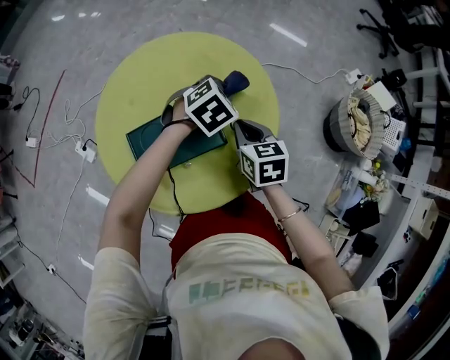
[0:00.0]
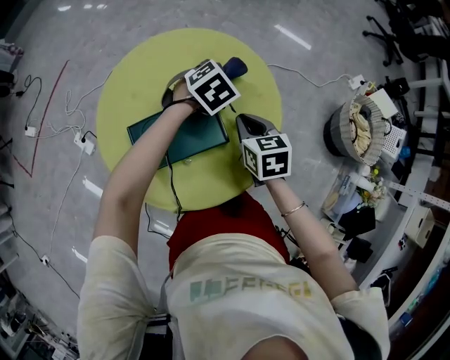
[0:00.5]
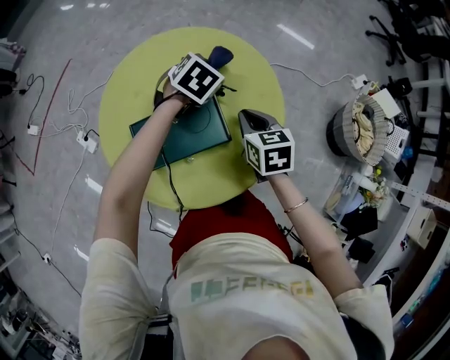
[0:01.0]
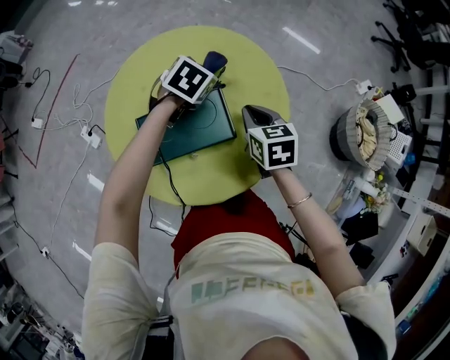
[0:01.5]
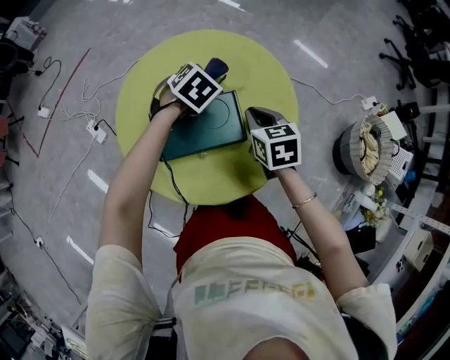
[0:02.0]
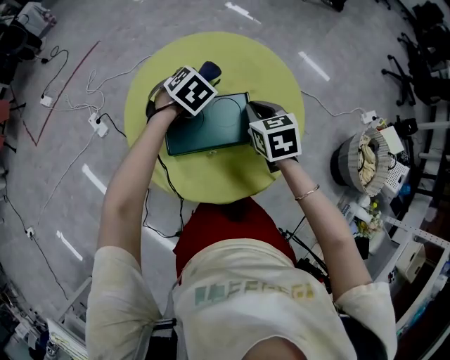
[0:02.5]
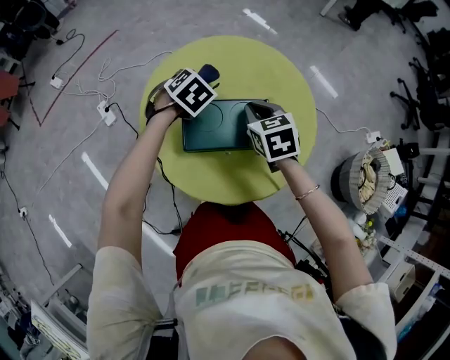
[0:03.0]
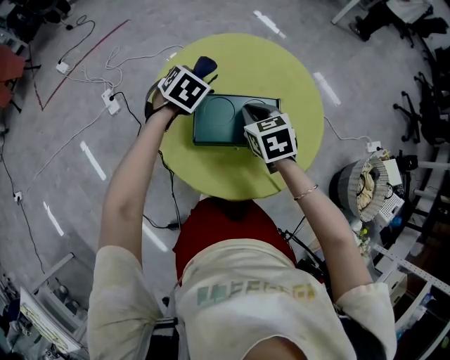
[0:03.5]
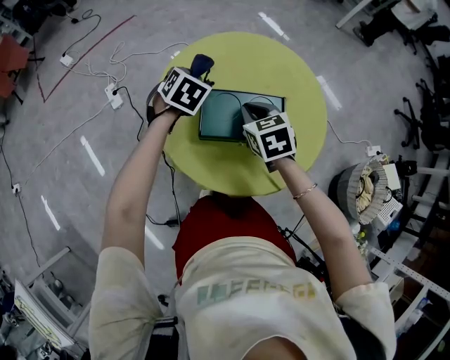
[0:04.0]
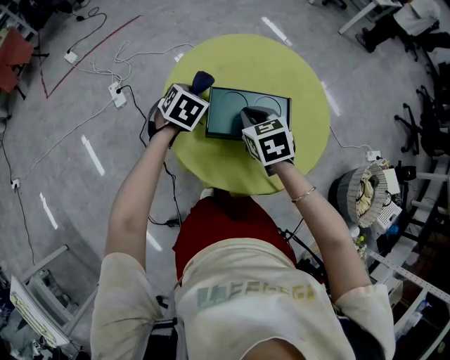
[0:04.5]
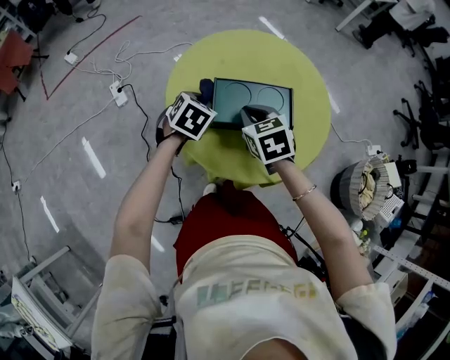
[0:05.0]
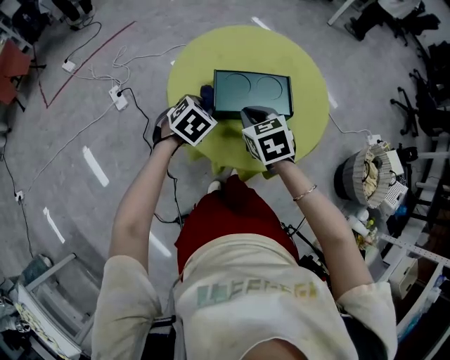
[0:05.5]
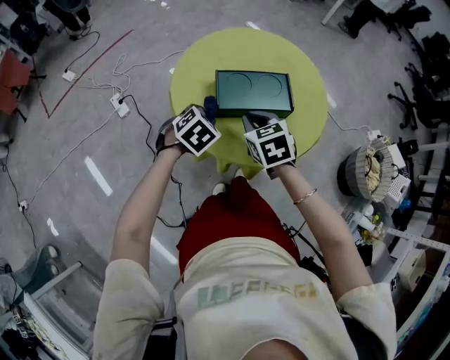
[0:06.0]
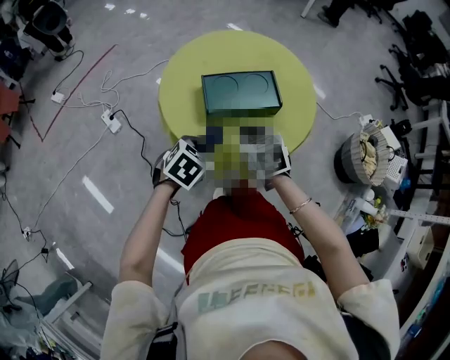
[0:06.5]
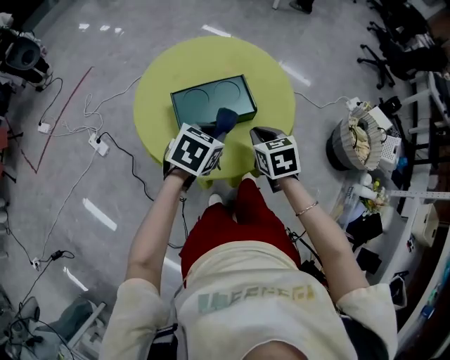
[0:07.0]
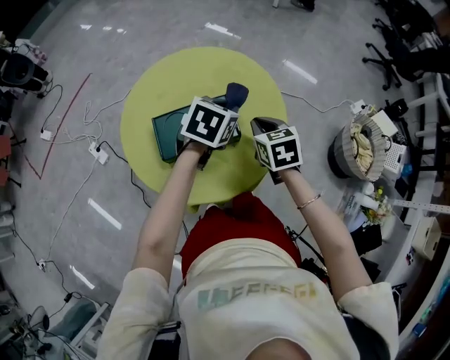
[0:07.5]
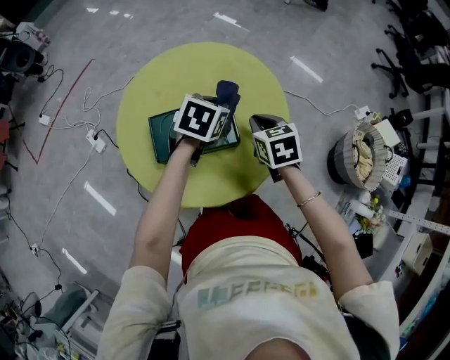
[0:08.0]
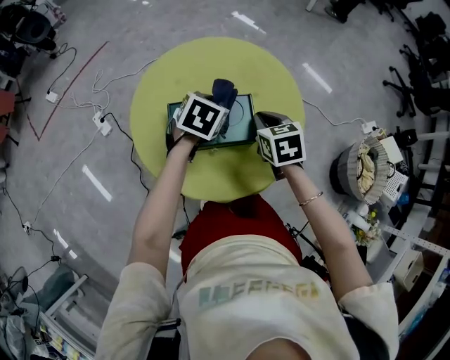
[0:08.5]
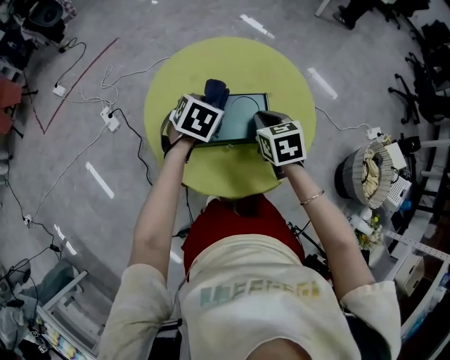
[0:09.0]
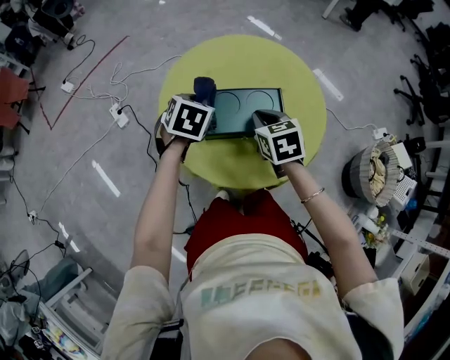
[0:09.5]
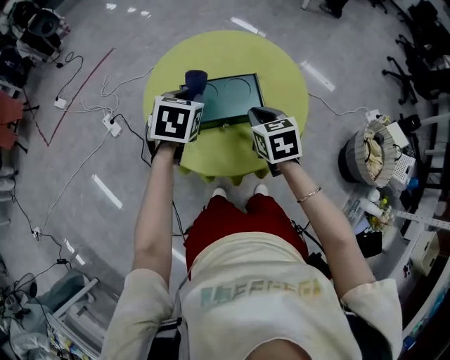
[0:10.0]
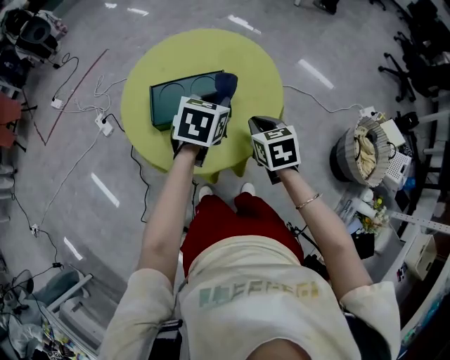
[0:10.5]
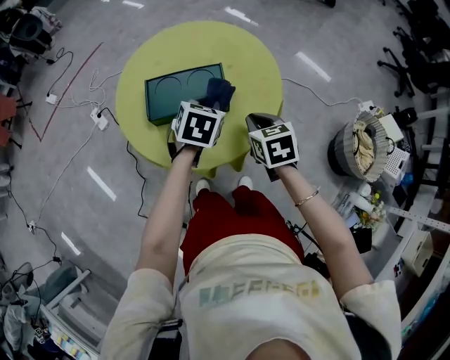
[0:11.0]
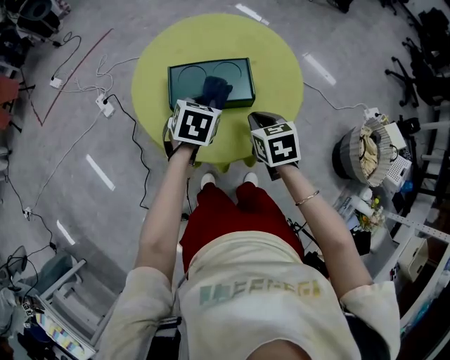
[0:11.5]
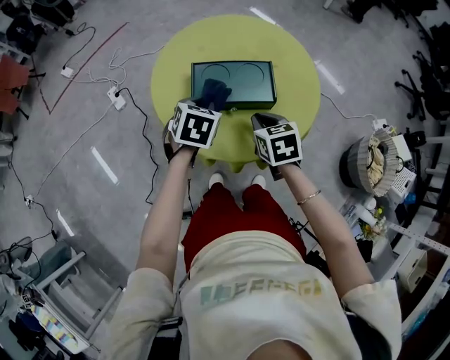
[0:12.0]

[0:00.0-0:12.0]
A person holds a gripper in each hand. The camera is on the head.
0:00.0 to 0:02.0: The left gripper is displaced to the left by approximately 15 cm, and rotates approximately 20 degrees.
0:02.0 to 0:04.0: Both grippers move to the left, about 20 cm. The right gripper turns by approximately 30 degrees; the left gripper swivels roughly 30 degrees.
0:04.0 to 0:06.0: The left gripper moves backward, some 20 cm, and rotates about 20 degrees. The right gripper travels backward by some 15 cm.
0:06.0 to 0:08.0: The two grippers go roughly 30 cm forward and to the right. The left gripper rotates some 20 degrees.
0:08.0 to 0:10.0: The right gripper travels backward and to the left by about 15 cm. The left gripper heads to the left and backward, covering about 20 cm.
0:10.0 to 0:12.0: The left gripper heads downward and backward, covering about 10 cm, and moves approximately 20 cm to the right and comes back. Meanwhile the right gripper moves downward, some 5 cm, and goes to the right and returns, approximately 10 cm each way.

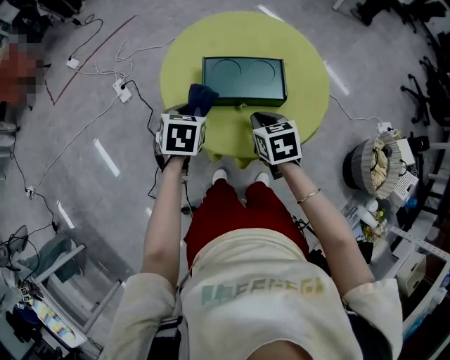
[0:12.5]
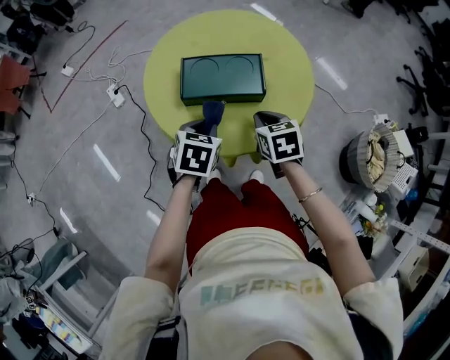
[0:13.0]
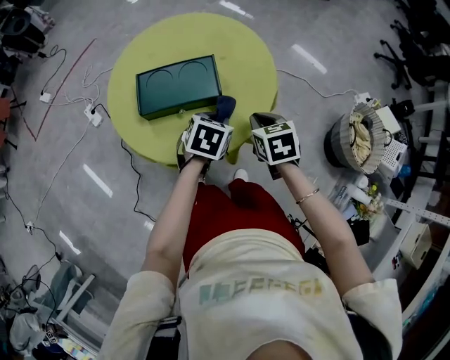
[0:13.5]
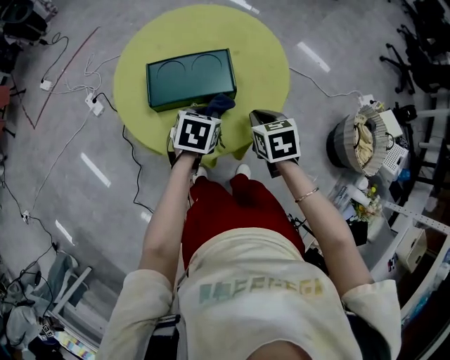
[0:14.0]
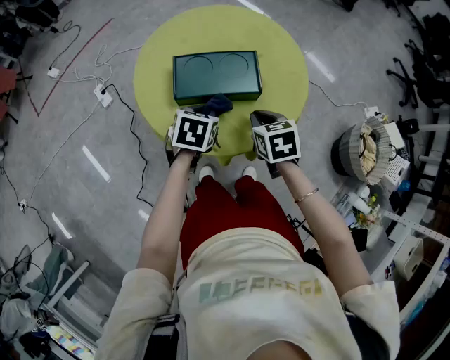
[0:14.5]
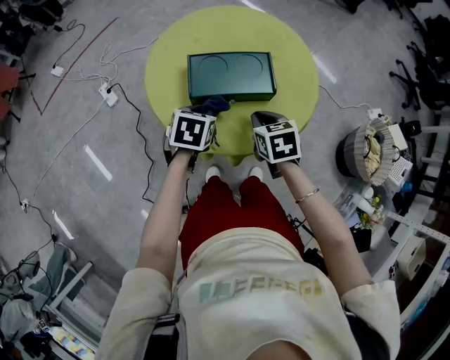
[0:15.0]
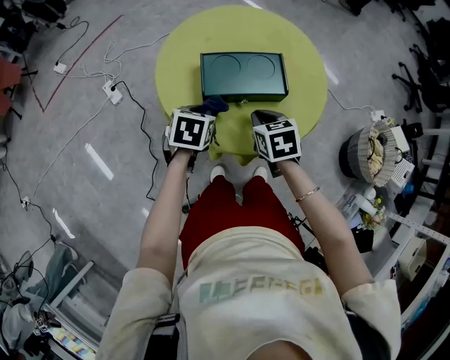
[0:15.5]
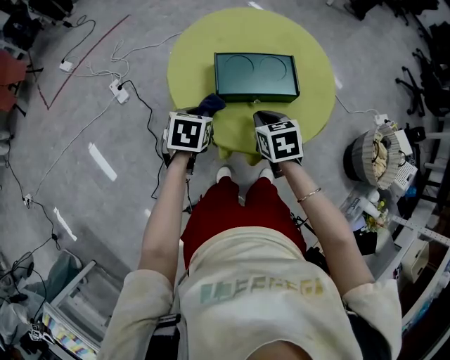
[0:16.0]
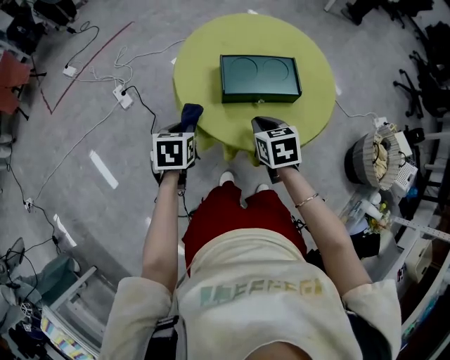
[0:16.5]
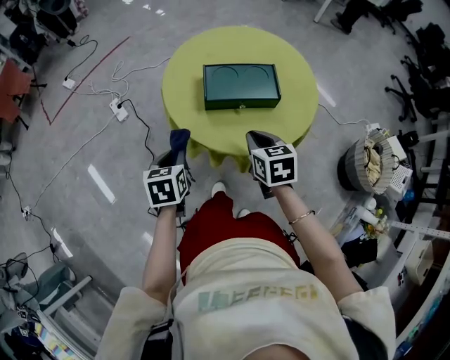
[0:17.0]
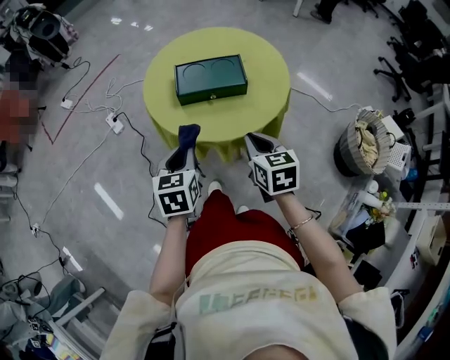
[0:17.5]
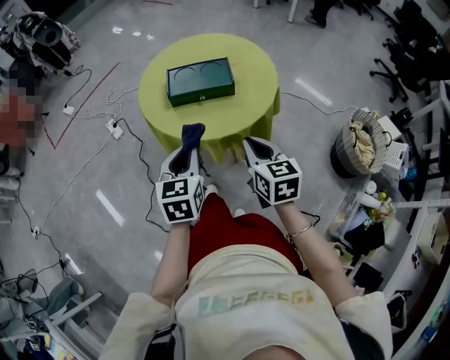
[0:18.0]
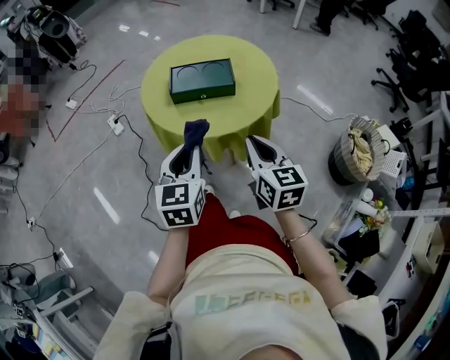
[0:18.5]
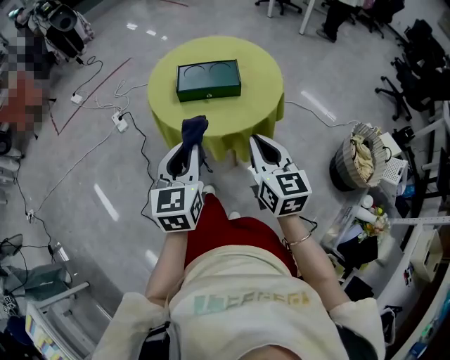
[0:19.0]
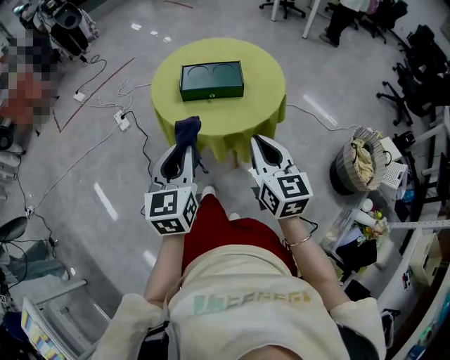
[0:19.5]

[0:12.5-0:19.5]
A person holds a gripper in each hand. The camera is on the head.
0:12.5 to 0:14.5: The left gripper heads to the right, covering about 10 cm, while the right gripper is displaced to the right by roughly 10 cm.
0:14.5 to 0:16.0: Both grippers move to the left, some 15 cm.
0:16.0 to 0:17.5: The right gripper shifts roughly 25 cm backward, to the right and upward, while the left gripper is displaced backward and upward by approximately 20 cm, and swivels some 20 degrees.
0:17.5 to 0:19.5: The grippers both shift upward and backward by roughly 15 cm. The right gripper swivels about 20 degrees. Meanwhile the left gripper swivels roughly 20 degrees.

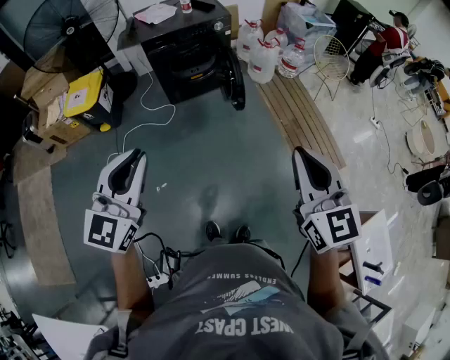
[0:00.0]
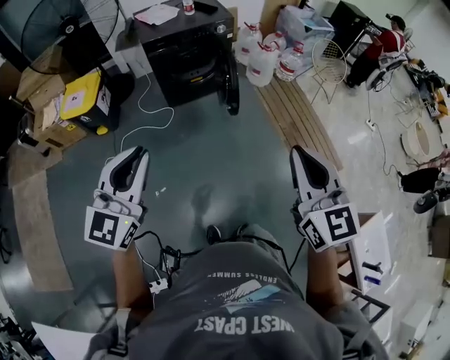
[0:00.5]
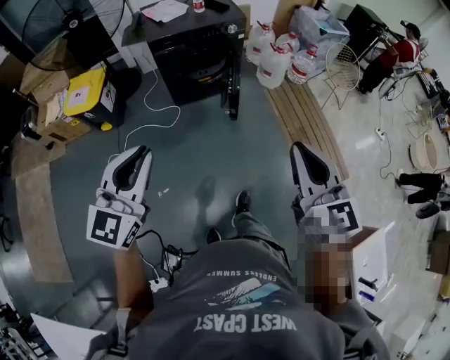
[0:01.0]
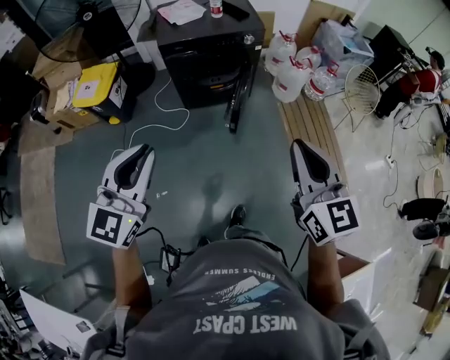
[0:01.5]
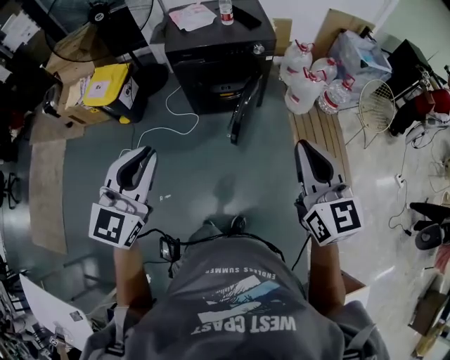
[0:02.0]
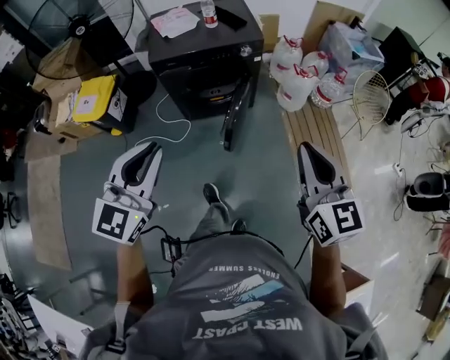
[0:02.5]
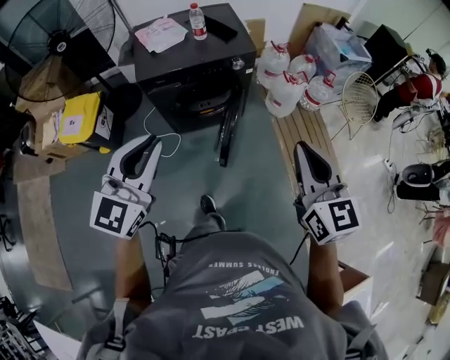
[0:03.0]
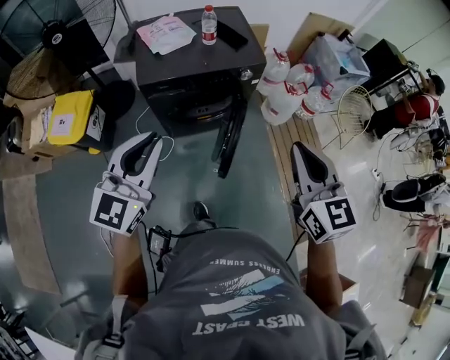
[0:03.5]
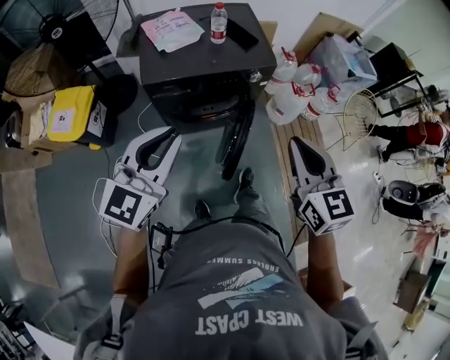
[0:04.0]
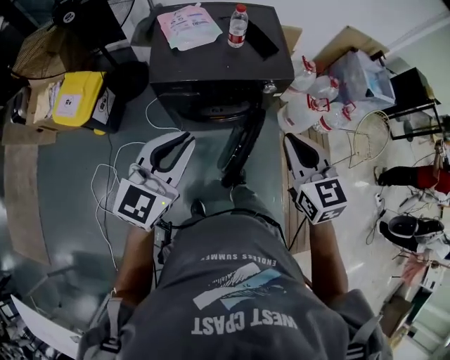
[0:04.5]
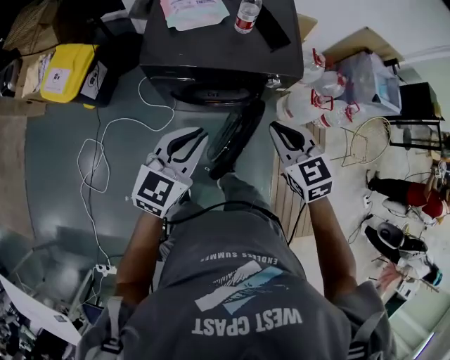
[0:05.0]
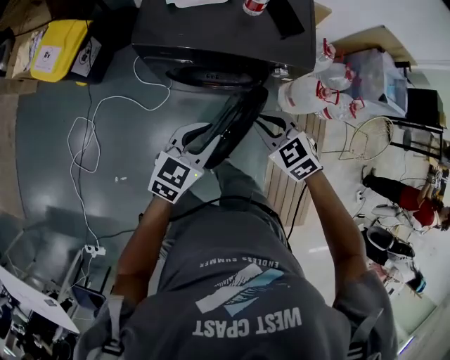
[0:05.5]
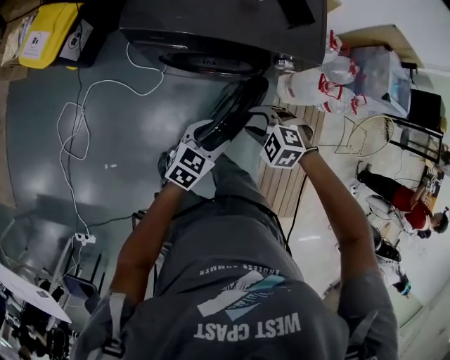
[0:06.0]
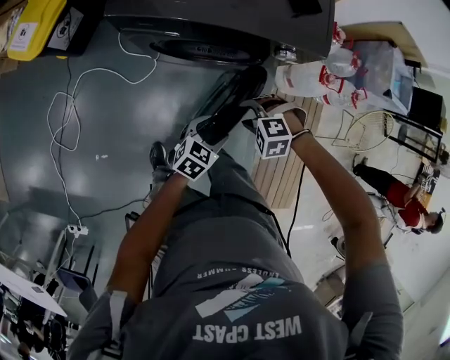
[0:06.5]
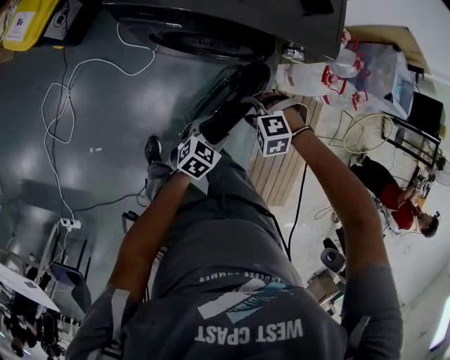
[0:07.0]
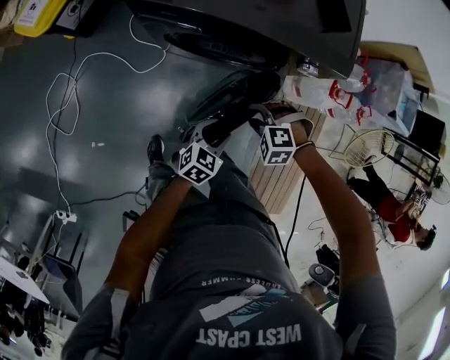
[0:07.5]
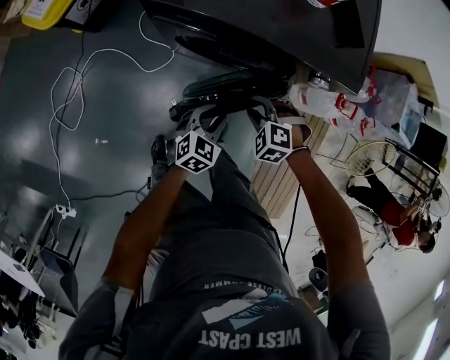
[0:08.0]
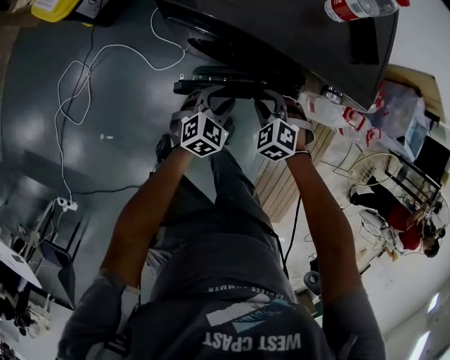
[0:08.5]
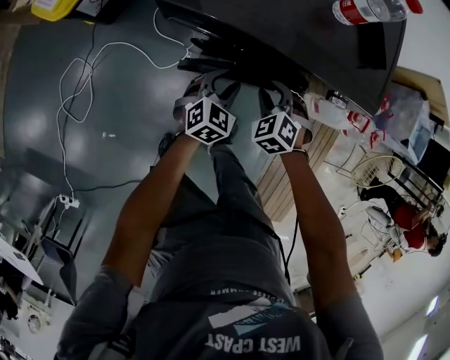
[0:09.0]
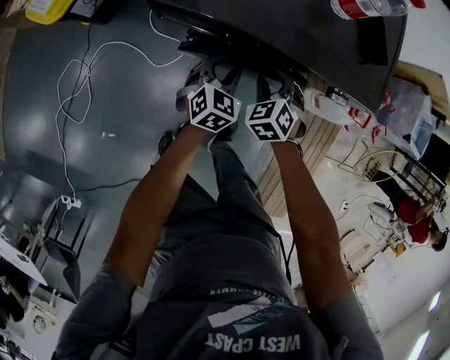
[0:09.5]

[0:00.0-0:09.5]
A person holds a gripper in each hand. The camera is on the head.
0:00.0 to 0:02.0: The grippers both shift forward by about 30 cm.
0:02.0 to 0:04.0: The left gripper travels forward by approximately 30 cm. The right gripper goes roughly 30 cm forward and to the left.
0:04.0 to 0:05.5: The right gripper goes about 30 cm downward and forward, and angles its fingers downward, by roughly 30 degrees. Meanwhile the left gripper heads downward and to the right, covering approximately 30 cm, and swivels approximately 30 degrees.
0:05.5 to 0:07.5: The two grippers go roughly 20 cm downward. The left gripper opens. Meanwhile the right gripper rotates around the line of its fingers by approximately 40 degrees, counterclockwise from behind, and opens up.
0:07.5 to 0:09.5: The left gripper moves some 25 cm, and rotates roughly 20 degrees, while the right gripper changes place by some 20 cm, and rotates around the line of its fingers by some 40 degrees, clockwise from behind.
